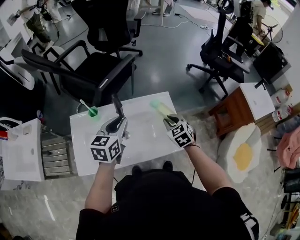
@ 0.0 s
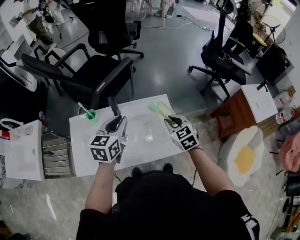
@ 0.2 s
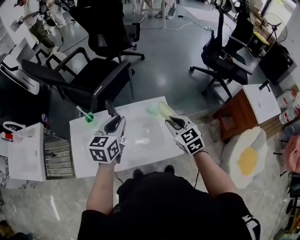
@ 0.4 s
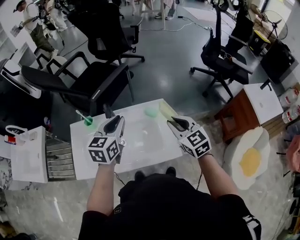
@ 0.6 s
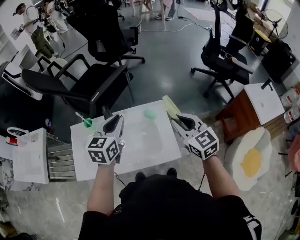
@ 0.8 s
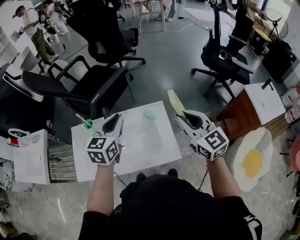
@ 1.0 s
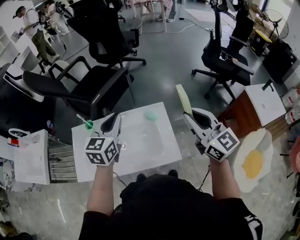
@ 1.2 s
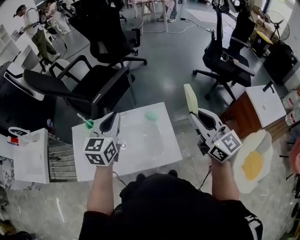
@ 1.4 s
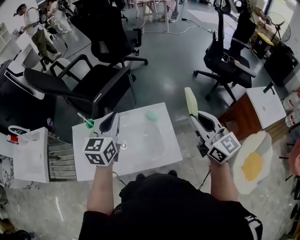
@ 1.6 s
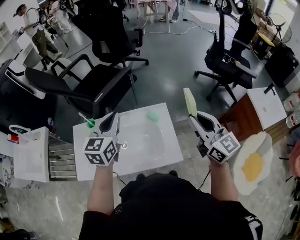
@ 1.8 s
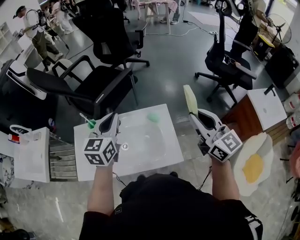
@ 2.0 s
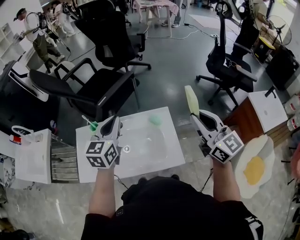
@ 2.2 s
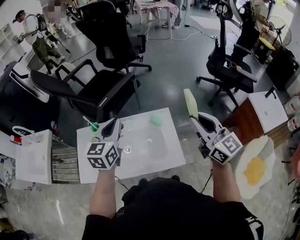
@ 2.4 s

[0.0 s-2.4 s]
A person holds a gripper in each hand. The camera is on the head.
0.0 to 1.2 s: The left gripper goes about 10 cm upward and to the right, while the right gripper moves upward and to the right, approximately 25 cm, and points its fingers some 40 degrees further upward.
1.2 to 2.4 s: There are only small adjustments of the grippers.

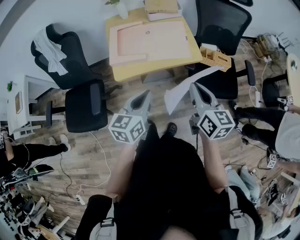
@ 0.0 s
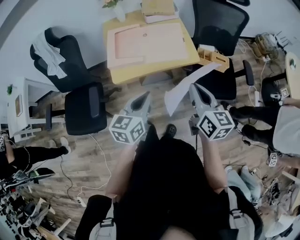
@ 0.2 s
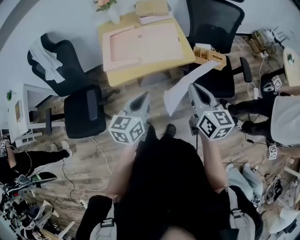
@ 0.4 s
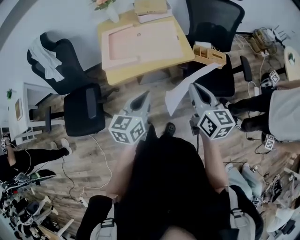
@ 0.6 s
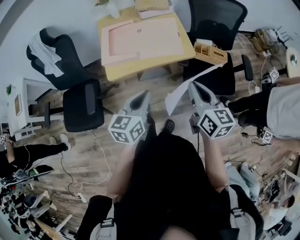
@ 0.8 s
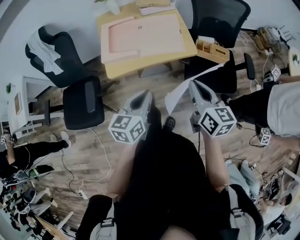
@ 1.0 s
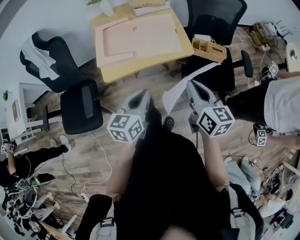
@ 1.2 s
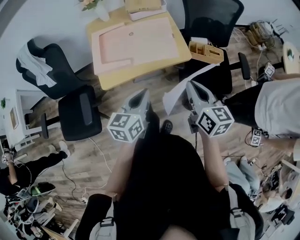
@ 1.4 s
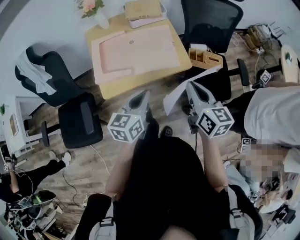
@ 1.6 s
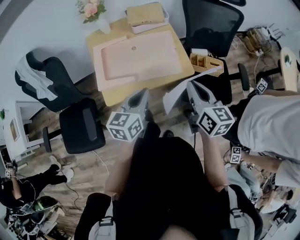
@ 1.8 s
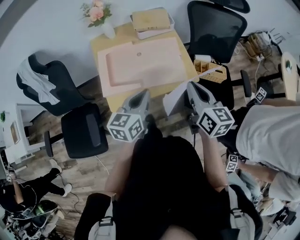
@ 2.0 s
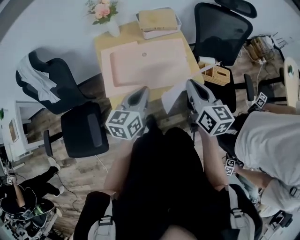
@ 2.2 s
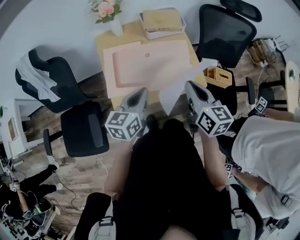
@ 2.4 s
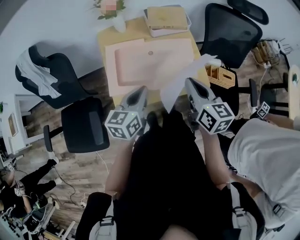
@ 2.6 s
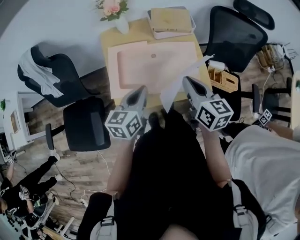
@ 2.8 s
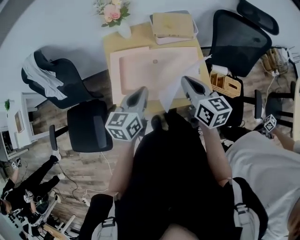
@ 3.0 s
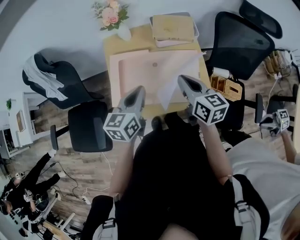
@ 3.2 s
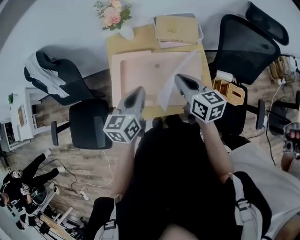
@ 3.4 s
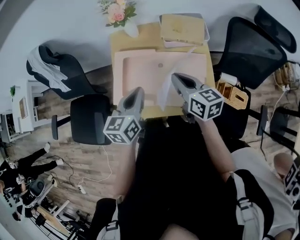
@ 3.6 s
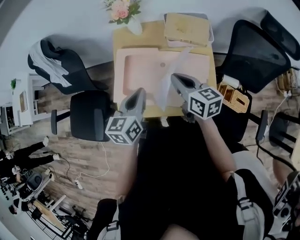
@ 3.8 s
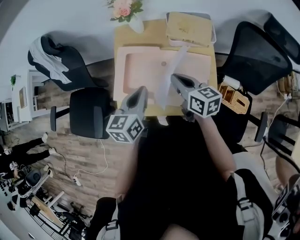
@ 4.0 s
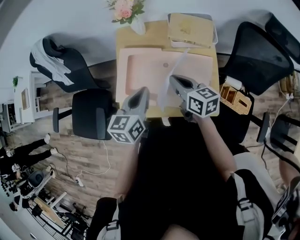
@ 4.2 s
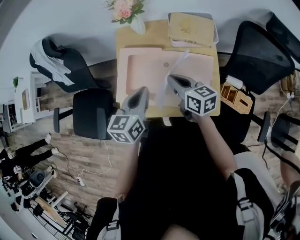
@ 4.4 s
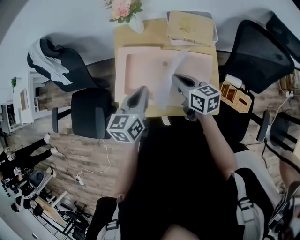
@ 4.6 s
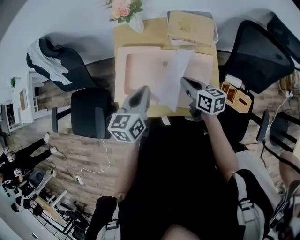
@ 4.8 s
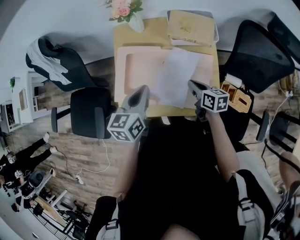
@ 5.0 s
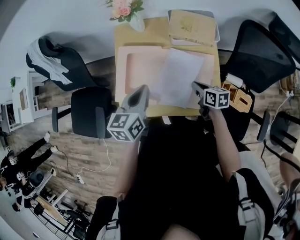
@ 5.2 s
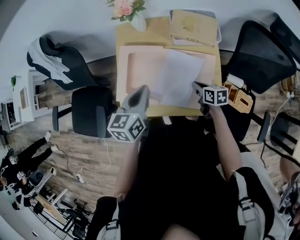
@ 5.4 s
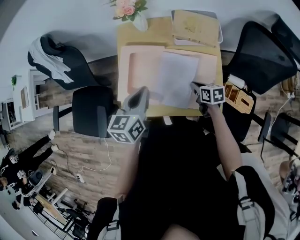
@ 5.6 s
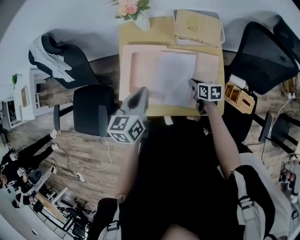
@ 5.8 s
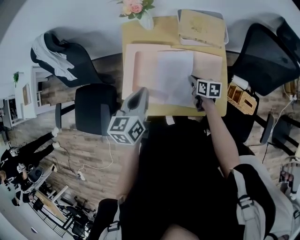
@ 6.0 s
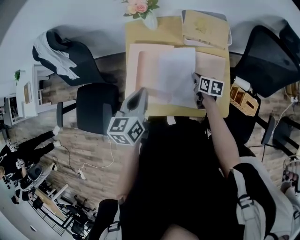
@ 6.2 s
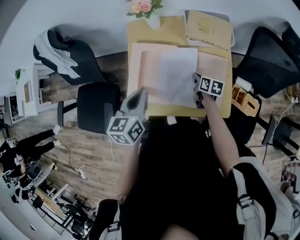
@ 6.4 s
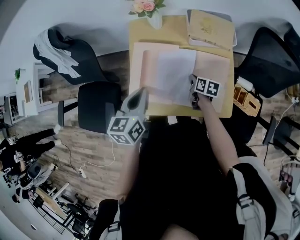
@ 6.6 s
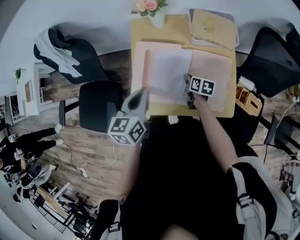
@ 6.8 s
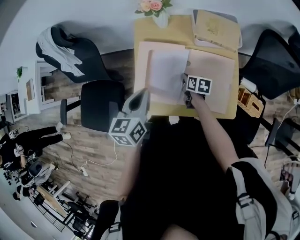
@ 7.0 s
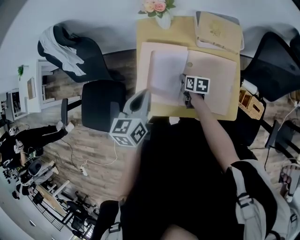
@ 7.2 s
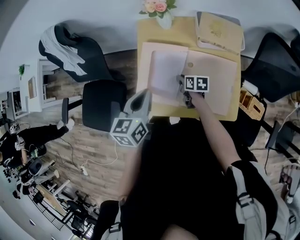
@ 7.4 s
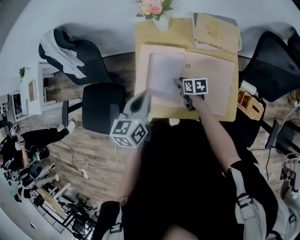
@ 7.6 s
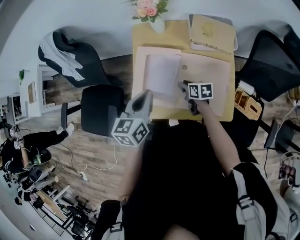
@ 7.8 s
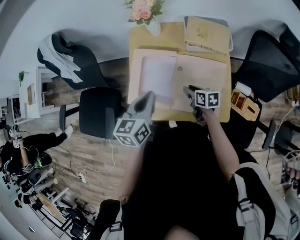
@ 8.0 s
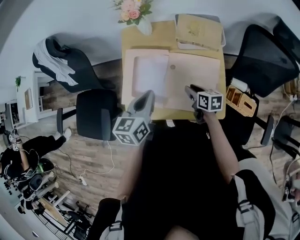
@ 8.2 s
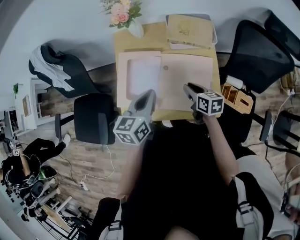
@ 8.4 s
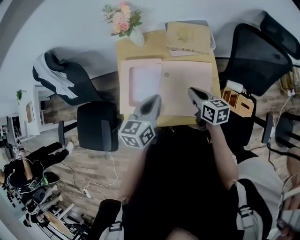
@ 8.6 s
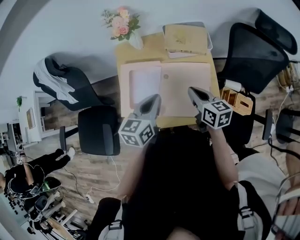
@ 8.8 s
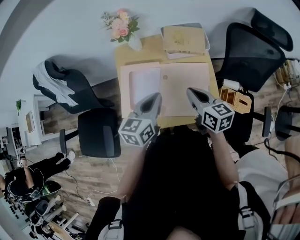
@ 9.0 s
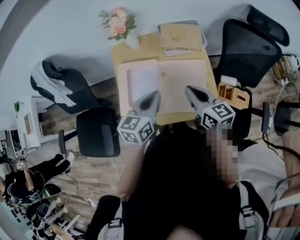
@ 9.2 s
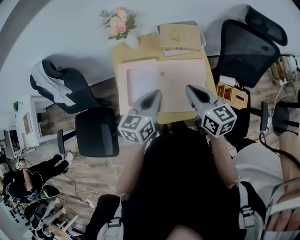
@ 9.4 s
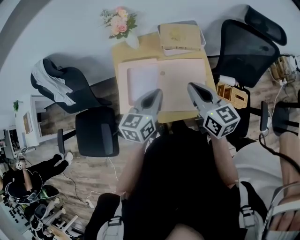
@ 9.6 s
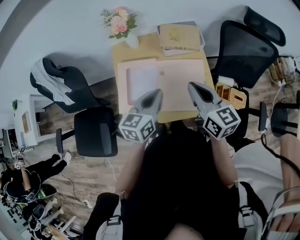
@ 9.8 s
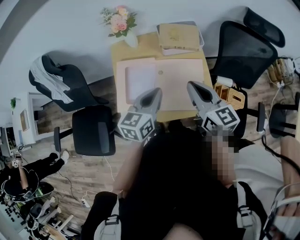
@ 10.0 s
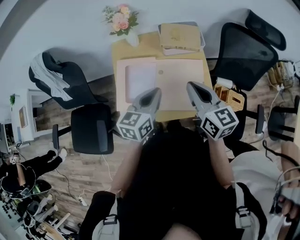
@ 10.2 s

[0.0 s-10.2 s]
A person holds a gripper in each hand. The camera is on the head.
0.0 to 1.4 s: The left gripper shifts approximately 10 cm forward and to the right, while the right gripper moves forward, approximately 5 cm.
1.4 to 3.0 s: Both grippers move forward and to the left, approximately 30 cm.
3.0 to 4.4 s: The right gripper shifts approximately 15 cm forward and downward, and changes its angle by some 20 degrees. Meanwhile the left gripper moves forward, approximately 5 cm.
4.4 to 5.8 s: The right gripper shifts approximately 20 cm downward and to the right, and rotates approximately 30 degrees.
5.8 to 7.2 s: The left gripper moves to the left, some 10 cm, while the right gripper heads to the left and forward, covering roughly 15 cm.
7.2 to 8.8 s: The right gripper shifts roughly 25 cm upward, to the right and backward, rotates some 30 degrees, and opens, then closes once more, while the left gripper shifts about 15 cm to the right.
8.8 to 10.2 s: The right gripper shifts about 15 cm upward.

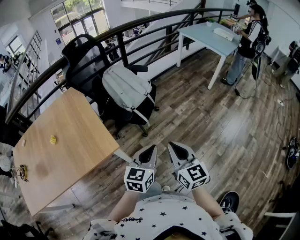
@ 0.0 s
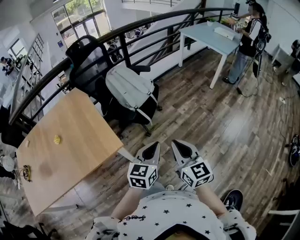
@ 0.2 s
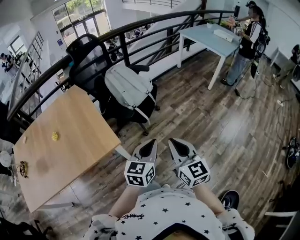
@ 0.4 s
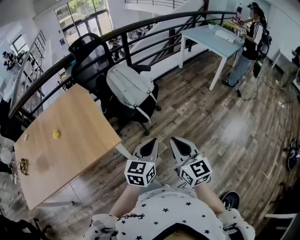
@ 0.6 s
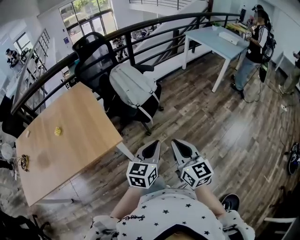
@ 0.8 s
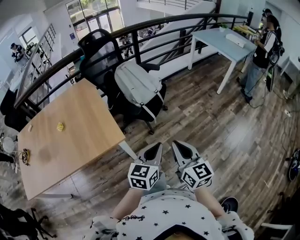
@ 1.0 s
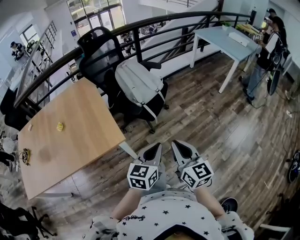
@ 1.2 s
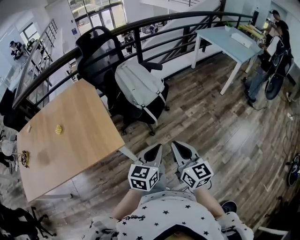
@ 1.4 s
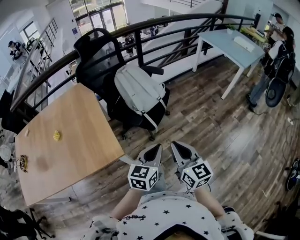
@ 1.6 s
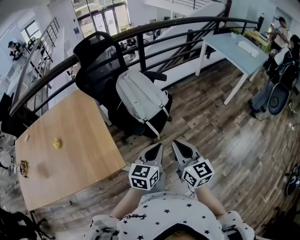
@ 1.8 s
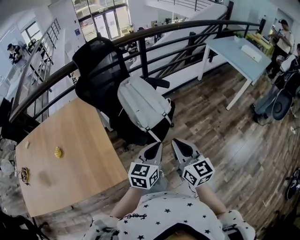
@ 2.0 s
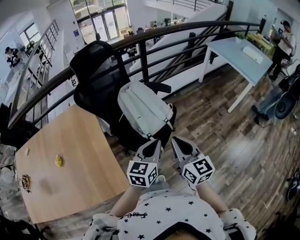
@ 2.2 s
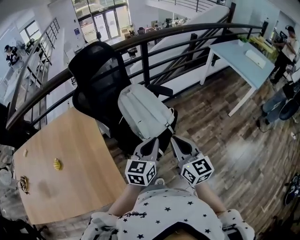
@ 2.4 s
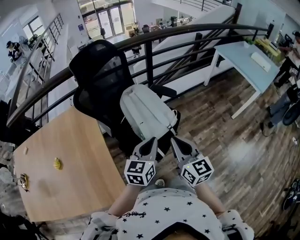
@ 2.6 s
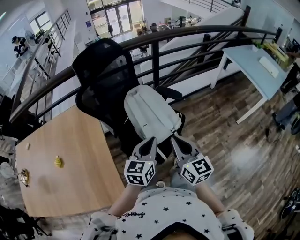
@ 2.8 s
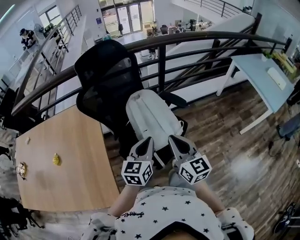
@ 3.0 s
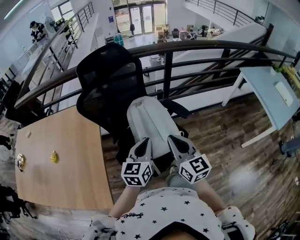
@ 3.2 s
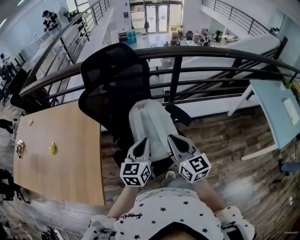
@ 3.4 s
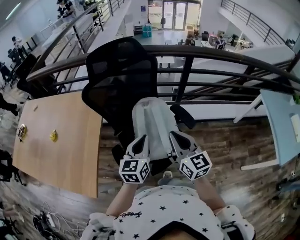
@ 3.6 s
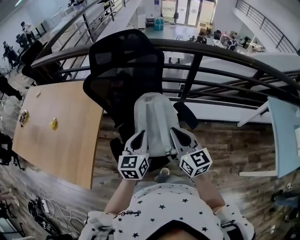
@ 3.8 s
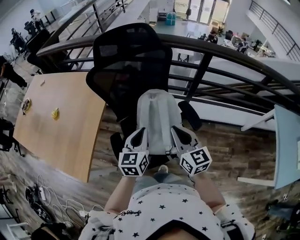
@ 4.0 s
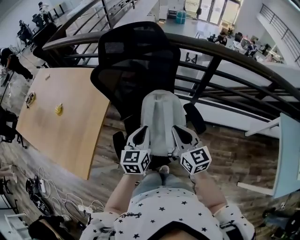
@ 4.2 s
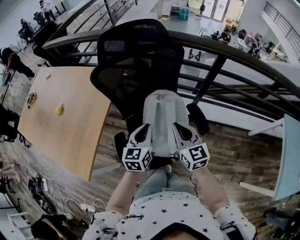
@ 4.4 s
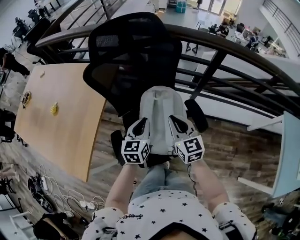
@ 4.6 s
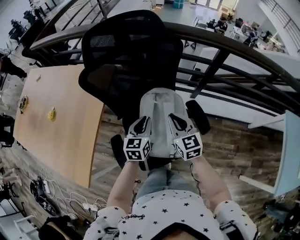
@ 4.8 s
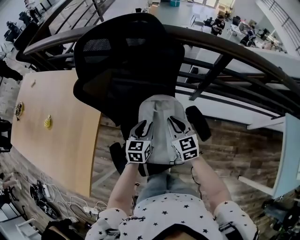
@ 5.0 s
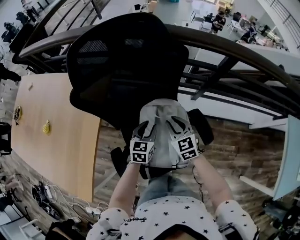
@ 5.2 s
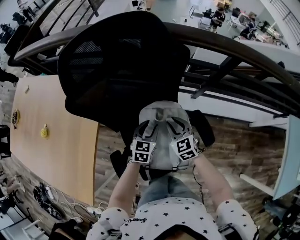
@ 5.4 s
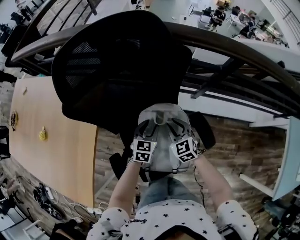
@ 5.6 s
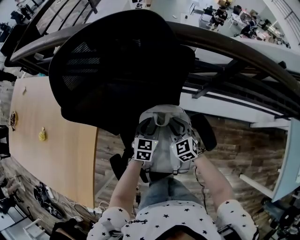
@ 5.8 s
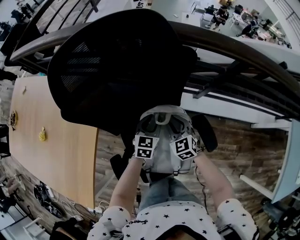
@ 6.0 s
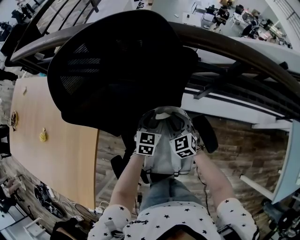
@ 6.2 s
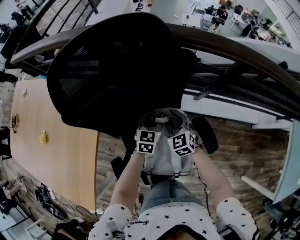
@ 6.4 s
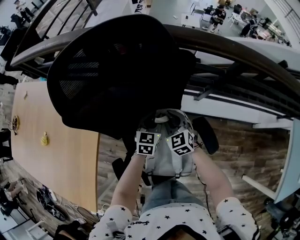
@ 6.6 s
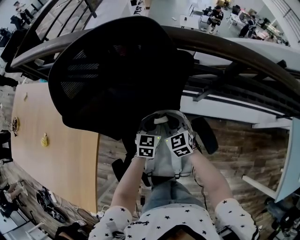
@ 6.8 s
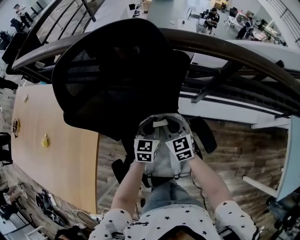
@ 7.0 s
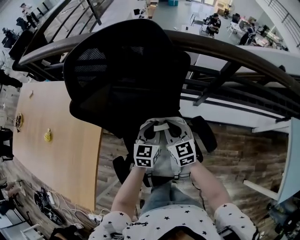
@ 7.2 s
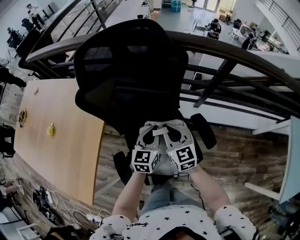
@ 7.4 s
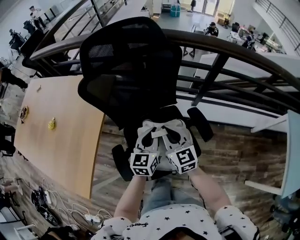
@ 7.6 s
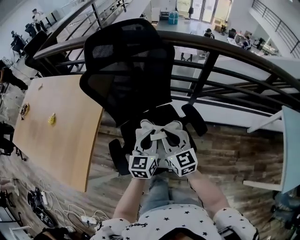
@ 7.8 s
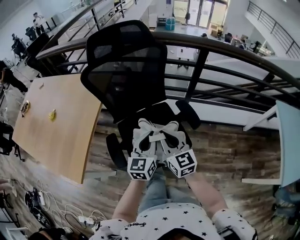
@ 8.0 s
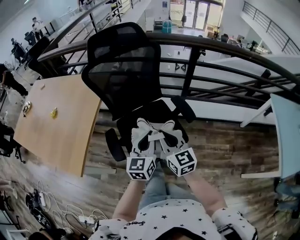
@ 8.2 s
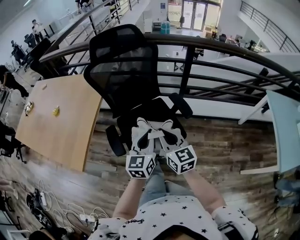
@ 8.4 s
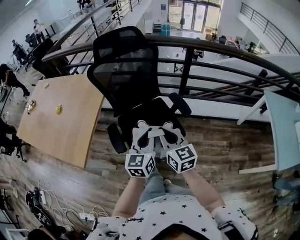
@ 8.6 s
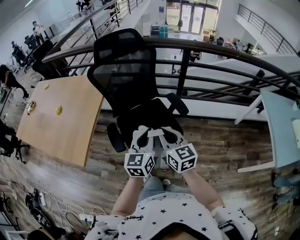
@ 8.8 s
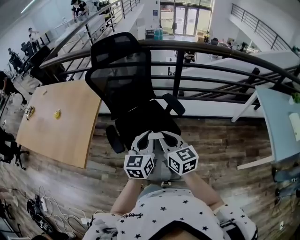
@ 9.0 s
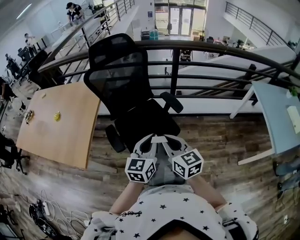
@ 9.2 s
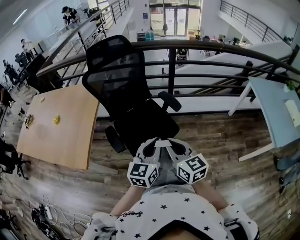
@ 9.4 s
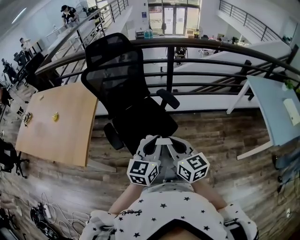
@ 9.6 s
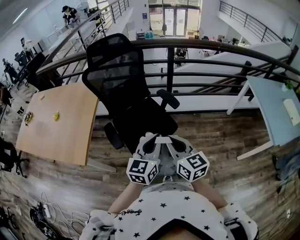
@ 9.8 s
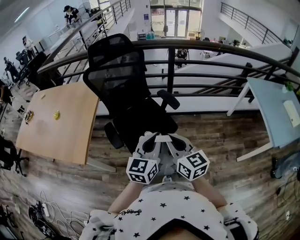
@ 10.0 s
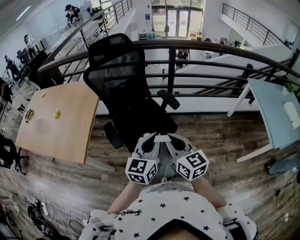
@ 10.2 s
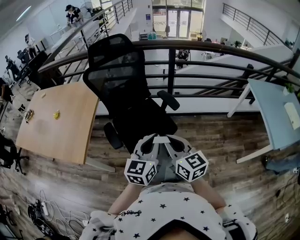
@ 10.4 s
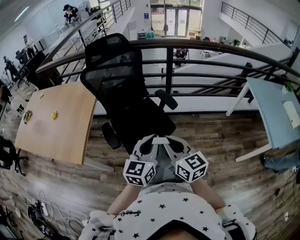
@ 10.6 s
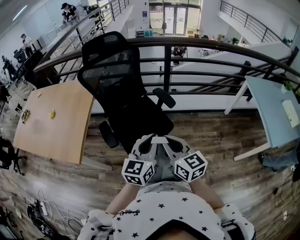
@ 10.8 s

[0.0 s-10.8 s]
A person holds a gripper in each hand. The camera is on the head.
0.0 to 1.6 s: Both grippers travel together forward, about 10 cm.
1.6 to 3.0 s: Both grippers are carried forward, some 40 cm. The left gripper swivels approximately 20 degrees.
3.0 to 4.6 s: The left gripper ends up some 25 cm from where it was, and changes its angle by roughly 40 degrees. The right gripper ends up approximately 30 cm from where it was, and swivels some 30 degrees.
4.6 to 6.2 s: The grippers both shift forward and downward by about 25 cm. The left gripper opens. Meanwhile the right gripper turns by roughly 30 degrees, and opens.
6.2 to 7.8 s: Both grippers move backward and upward, roughly 30 cm. The left gripper changes its angle by some 20 degrees, and closes up; the right gripper turns by about 30 degrees, and closes its fingers.
7.8 to 9.2 s: The left gripper travels backward and upward by some 35 cm. Meanwhile the right gripper heads backward, covering about 30 cm.
9.2 to 10.8 s: Both grippers travel together backward, some 5 cm.
